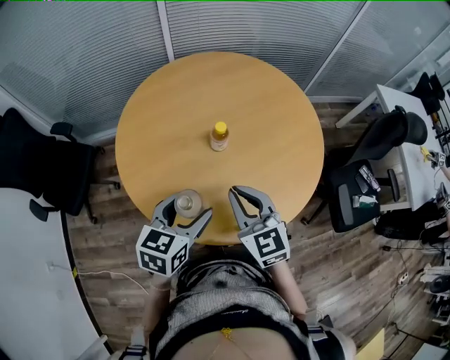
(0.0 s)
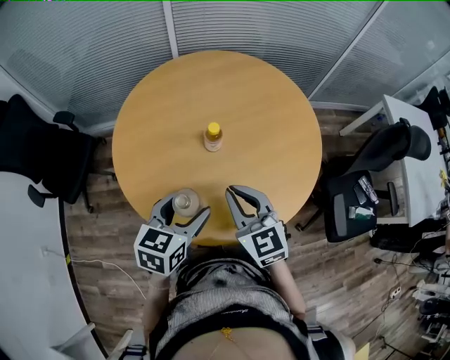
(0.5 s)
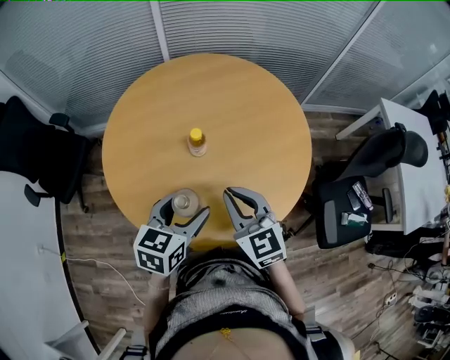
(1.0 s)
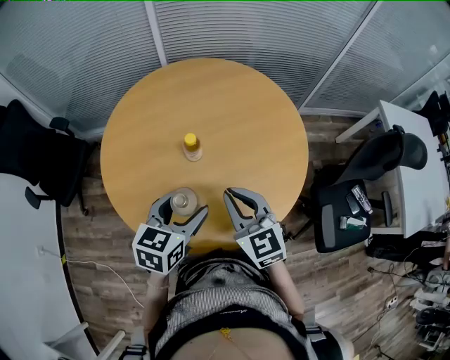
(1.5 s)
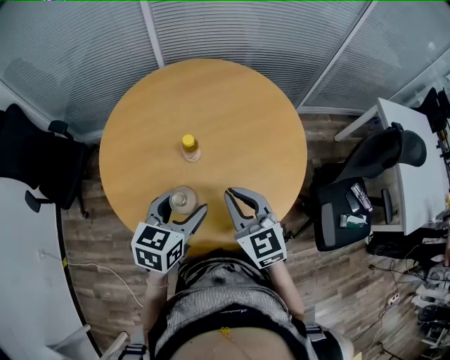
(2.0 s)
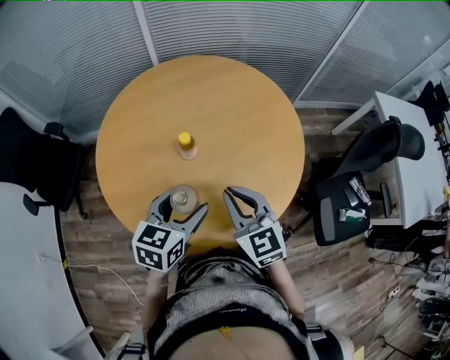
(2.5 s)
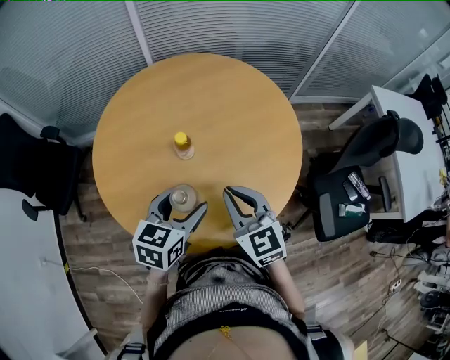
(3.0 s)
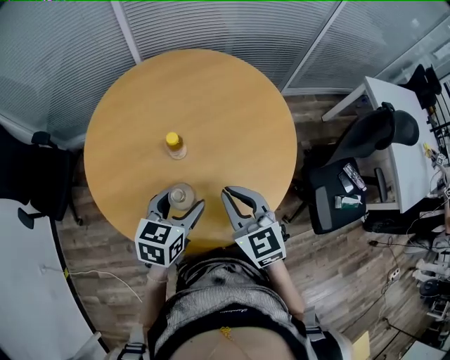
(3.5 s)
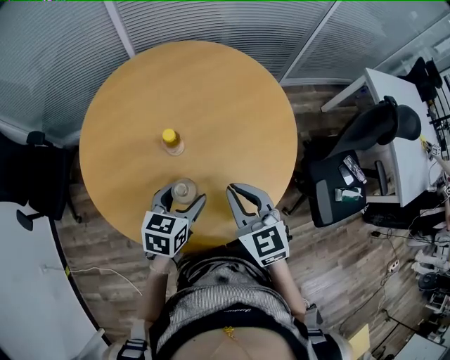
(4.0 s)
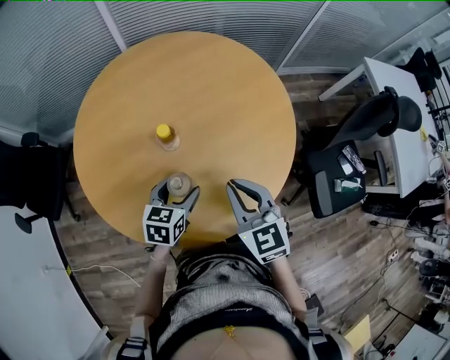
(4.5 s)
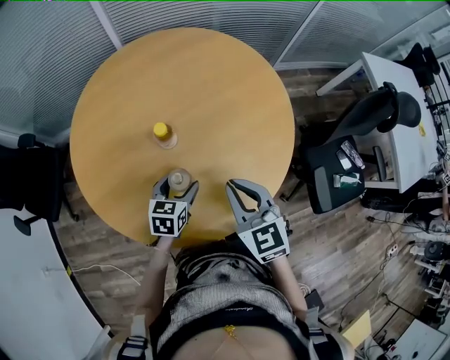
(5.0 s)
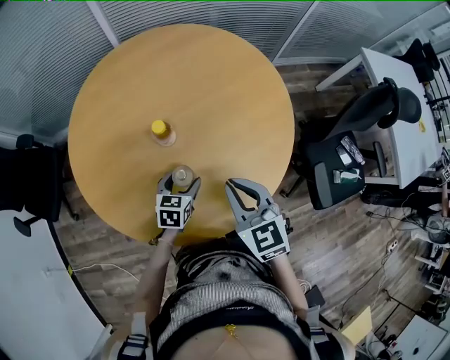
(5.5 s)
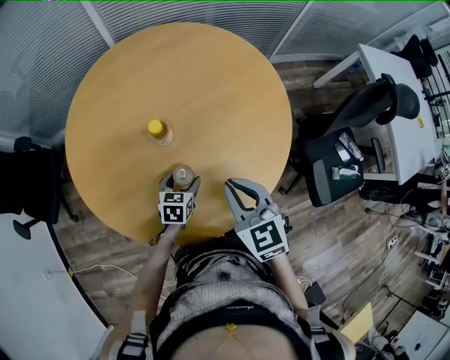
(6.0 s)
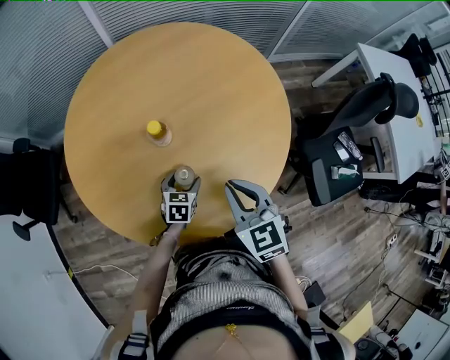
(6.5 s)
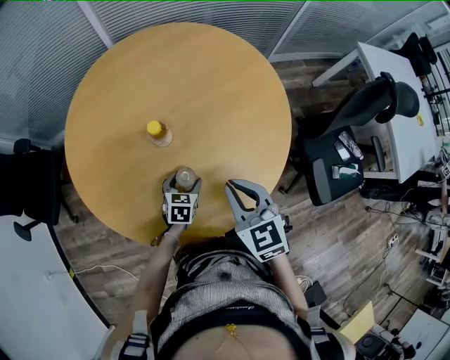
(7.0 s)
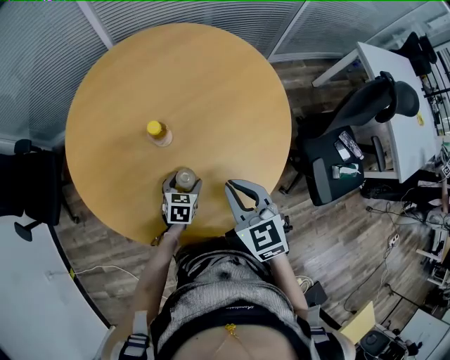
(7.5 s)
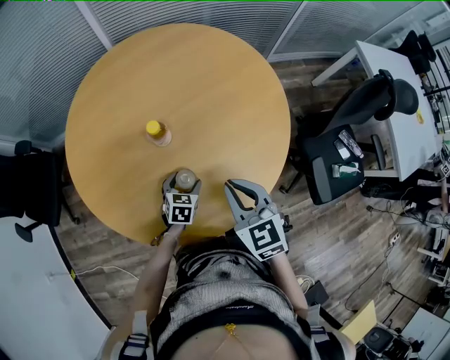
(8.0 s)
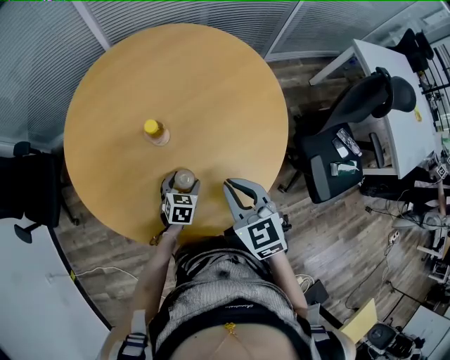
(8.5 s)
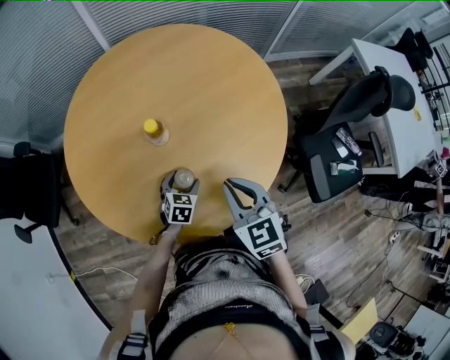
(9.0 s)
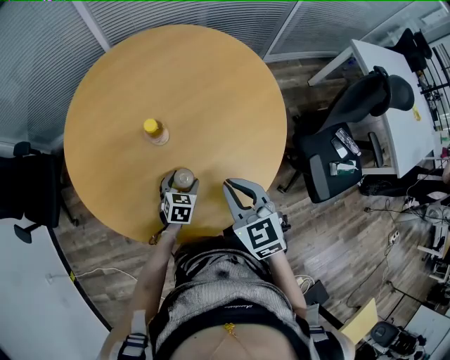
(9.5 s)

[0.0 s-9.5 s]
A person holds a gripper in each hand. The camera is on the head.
0.0 to 2.0 s: Both grippers travel together to the right, some 10 cm.
2.0 to 4.0 s: The left gripper travels downward by about 10 cm.
4.0 to 5.5 s: The left gripper heads downward, covering roughly 15 cm.
5.5 to 7.5 s: The left gripper is displaced downward by roughly 5 cm.
7.5 to 9.5 s: The grippers move only a little.

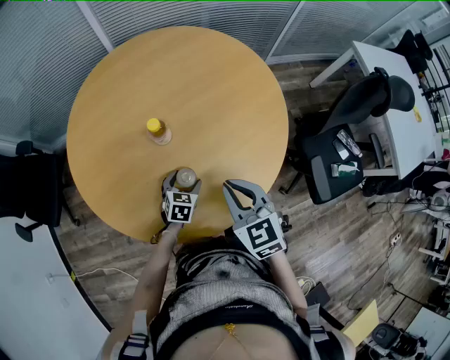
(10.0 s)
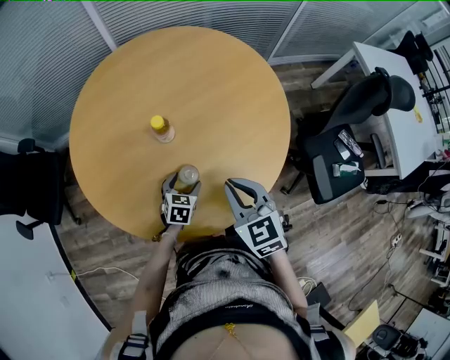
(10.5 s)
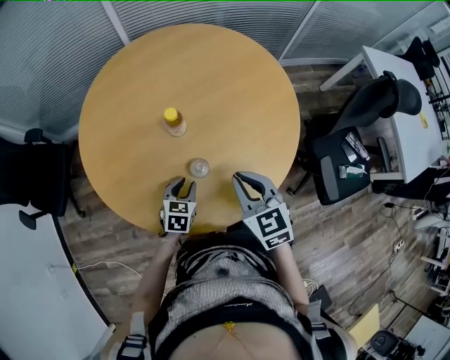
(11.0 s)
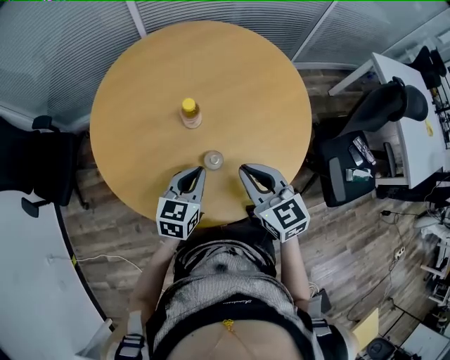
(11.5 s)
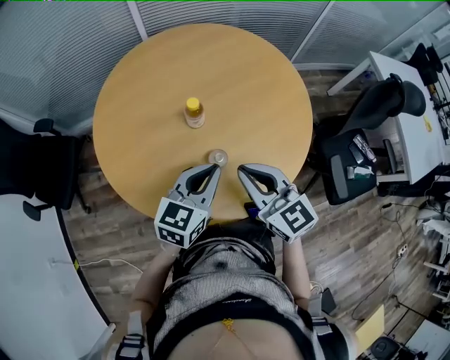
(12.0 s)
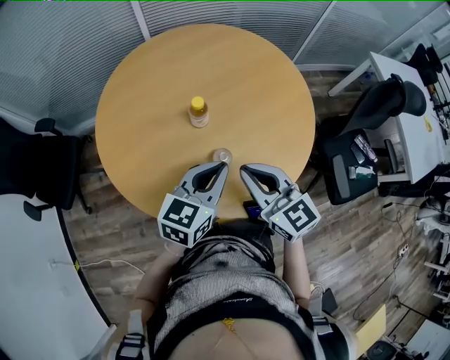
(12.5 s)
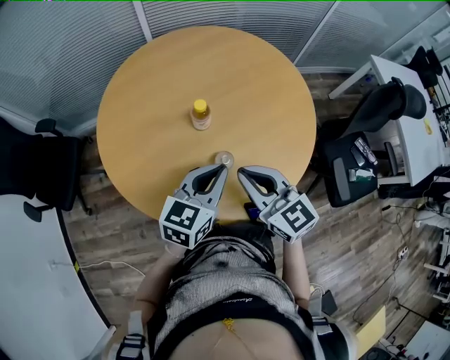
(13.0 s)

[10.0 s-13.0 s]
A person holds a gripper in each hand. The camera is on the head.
10.0 to 11.5 s: The left gripper travels upward by about 15 cm, swivels about 20 degrees, and closes its fingers.
11.5 to 13.0 s: The left gripper travels upward by approximately 10 cm. The right gripper moves to the left, some 5 cm.

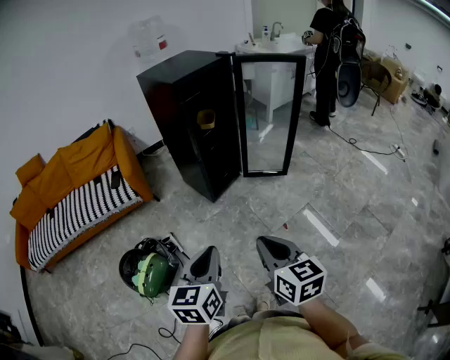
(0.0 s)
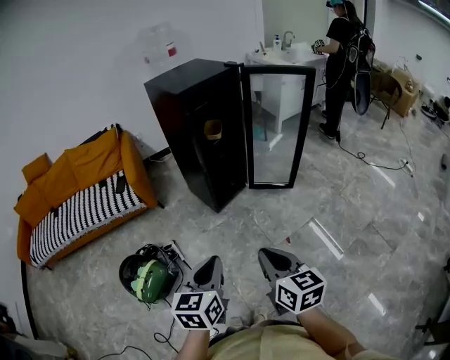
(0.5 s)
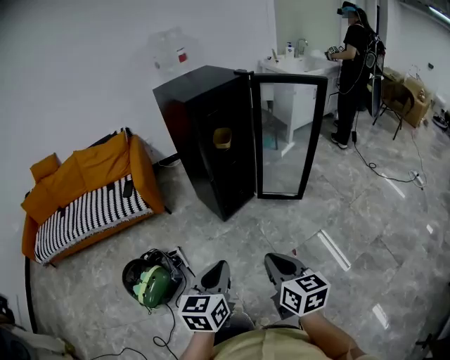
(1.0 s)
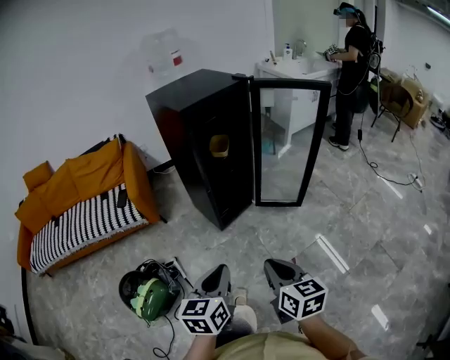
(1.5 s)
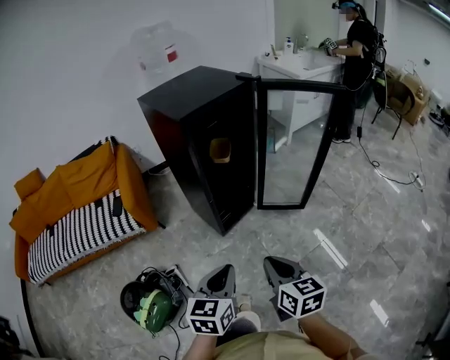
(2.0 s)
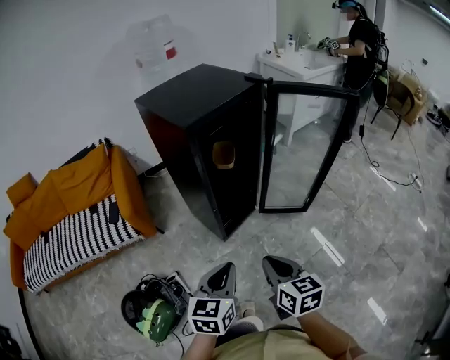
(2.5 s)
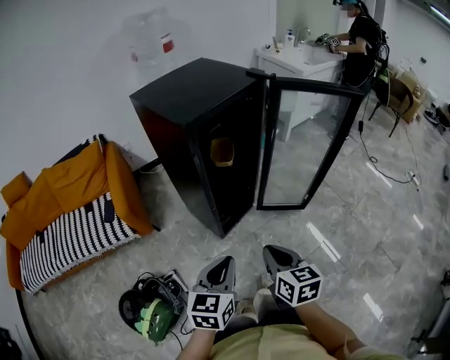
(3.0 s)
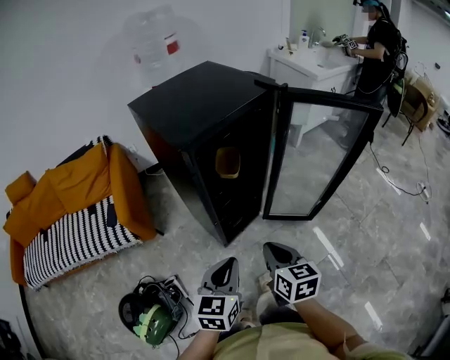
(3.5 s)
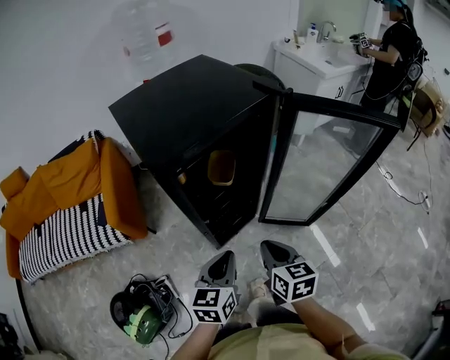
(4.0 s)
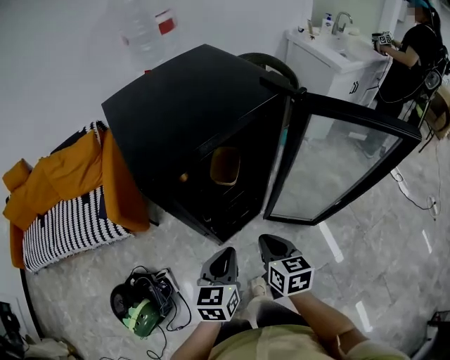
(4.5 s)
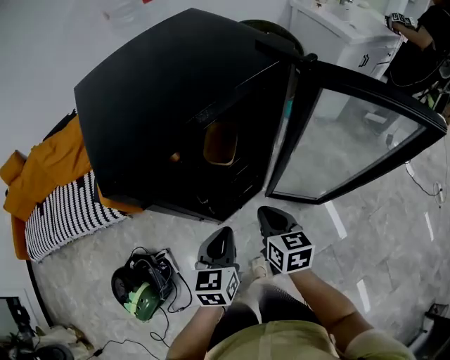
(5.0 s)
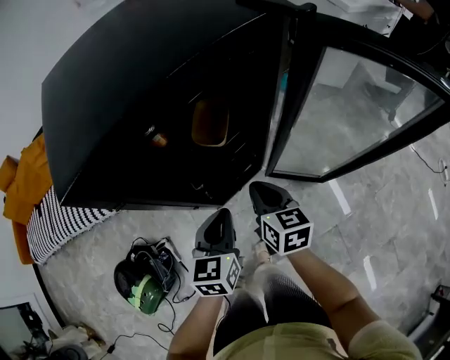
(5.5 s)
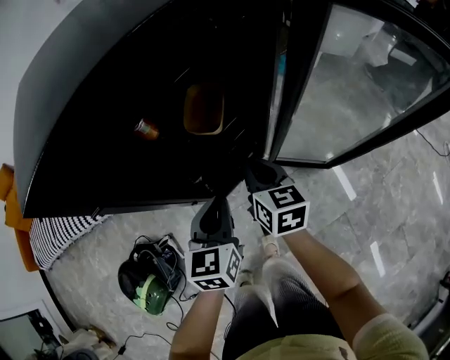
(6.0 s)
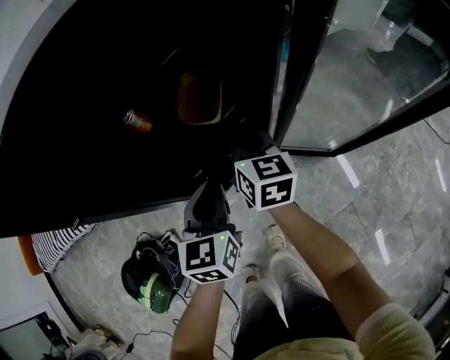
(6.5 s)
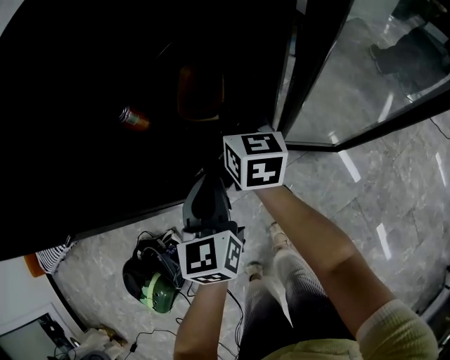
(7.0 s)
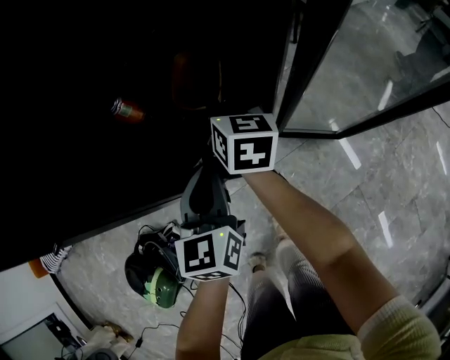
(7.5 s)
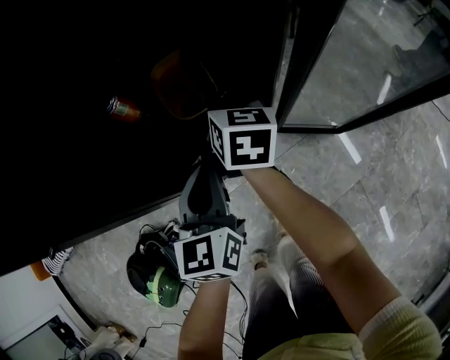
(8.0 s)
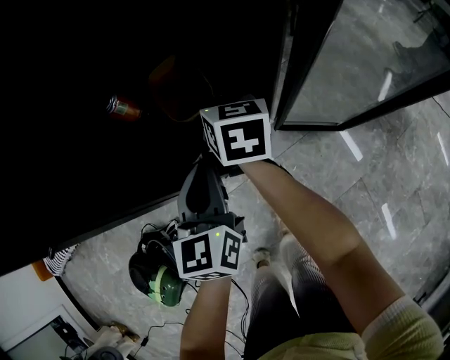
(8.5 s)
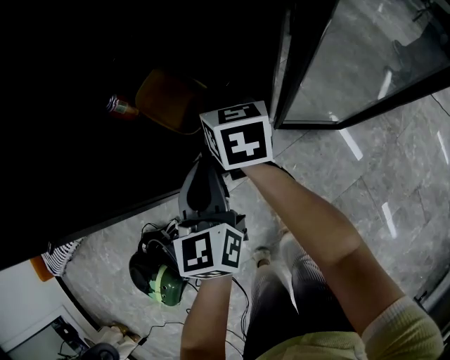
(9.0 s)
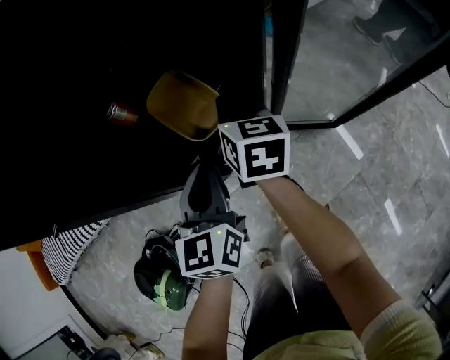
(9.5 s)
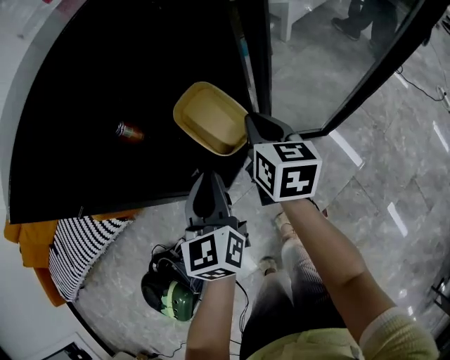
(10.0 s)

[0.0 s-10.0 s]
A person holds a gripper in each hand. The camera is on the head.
0.0 to 2.0 s: Both grippers travel together forward, approximately 20 cm.
2.0 to 4.0 s: The grippers both shift forward by about 25 cm.
4.0 to 6.0 s: The two grippers go about 20 cm forward and downward.
6.0 to 8.0 s: The left gripper changes place by about 5 cm; the right gripper is displaced forward by about 10 cm, and opens its fingers.
8.0 to 10.0 s: The left gripper ends up about 5 cm from where it was. The right gripper goes about 15 cm backward, to the right and upward.

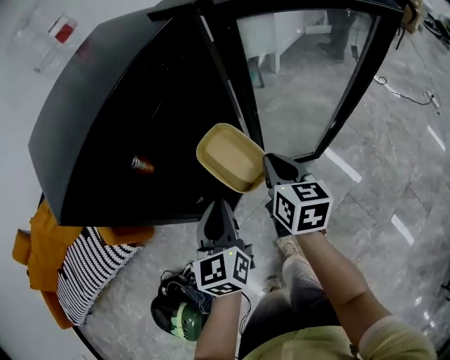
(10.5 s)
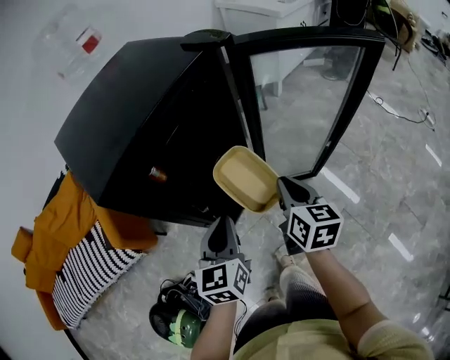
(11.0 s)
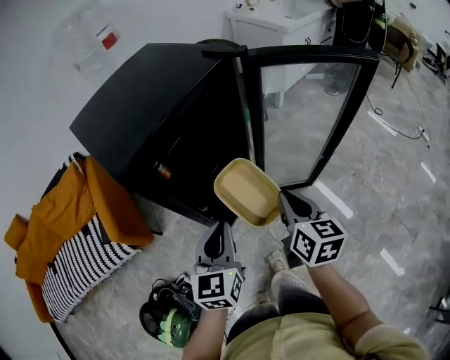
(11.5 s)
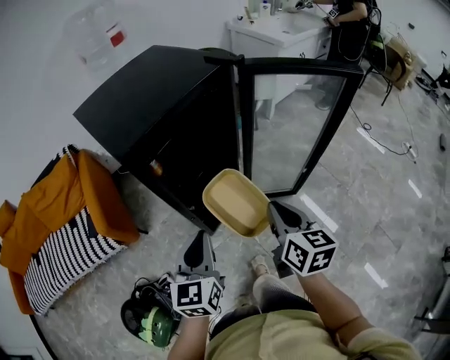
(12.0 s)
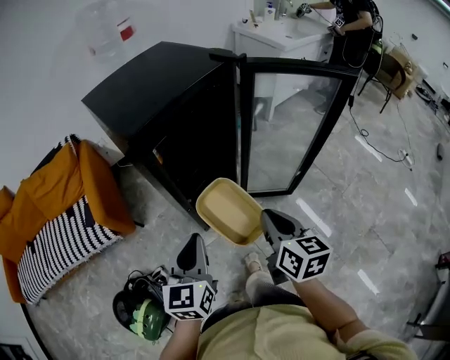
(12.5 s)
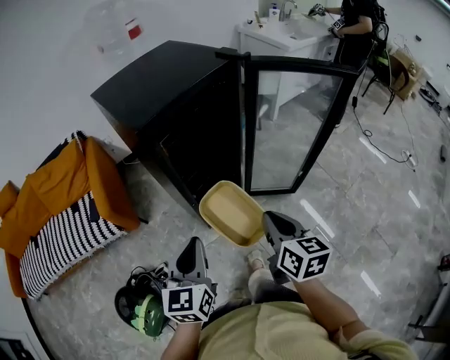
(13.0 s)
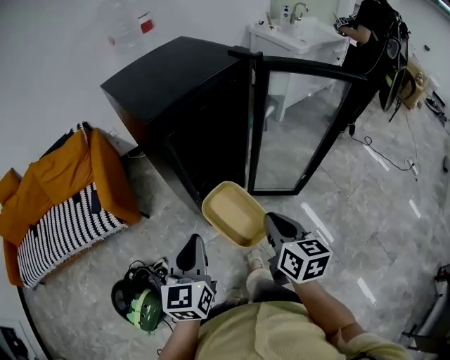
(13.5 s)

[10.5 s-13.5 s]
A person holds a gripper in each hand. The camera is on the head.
10.5 to 12.0 s: The right gripper goes some 20 cm backward and upward, while the left gripper is displaced backward, upward and to the left by roughly 15 cm.
12.0 to 13.5 s: Both grippers move backward, about 10 cm.

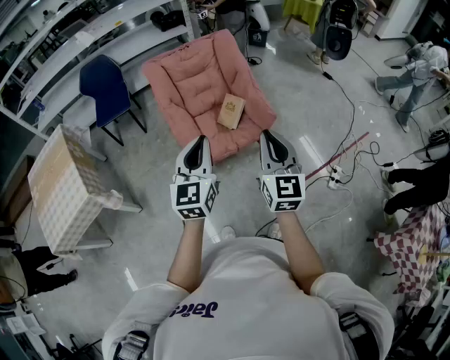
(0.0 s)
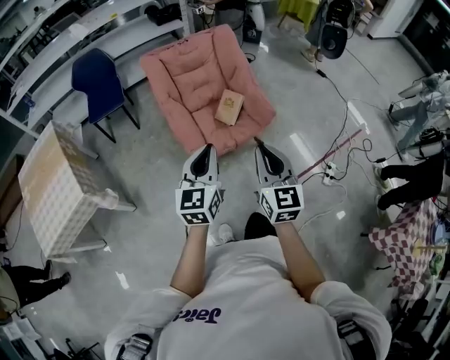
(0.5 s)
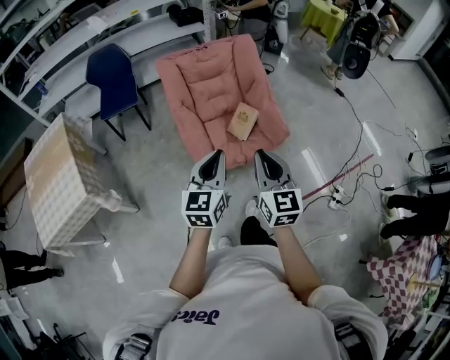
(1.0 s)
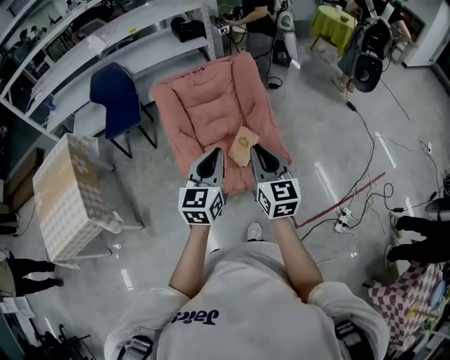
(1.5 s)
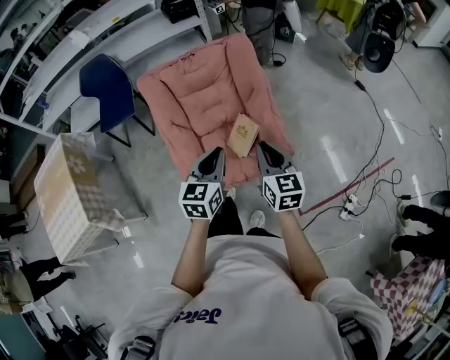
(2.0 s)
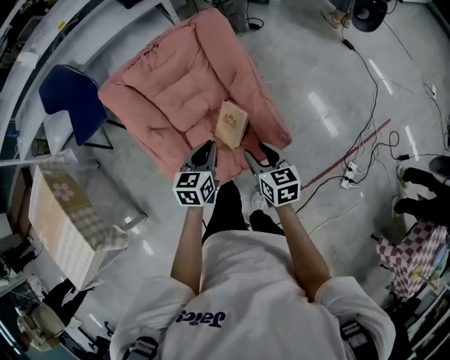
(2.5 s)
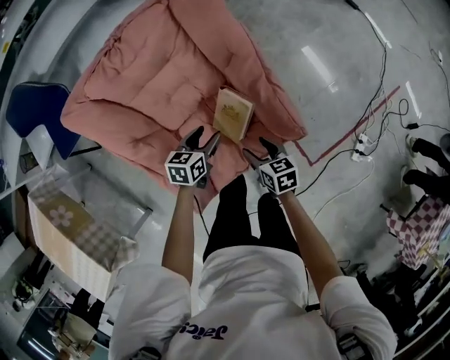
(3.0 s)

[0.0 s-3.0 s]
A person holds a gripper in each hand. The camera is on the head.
0.0 to 1.5 s: Both grippers move forward, roughly 20 cm.
1.5 to 3.0 s: Both grippers travel together downward and forward, roughly 50 cm. The left gripper tilts its fingers approximately 30 degrees downward, and opens its fingers. The right gripper angles its fingers downward, by about 40 degrees, and opens.
